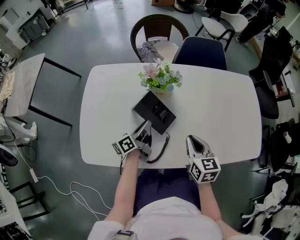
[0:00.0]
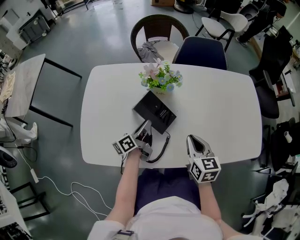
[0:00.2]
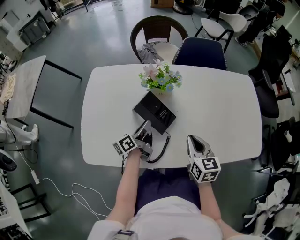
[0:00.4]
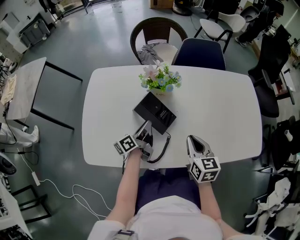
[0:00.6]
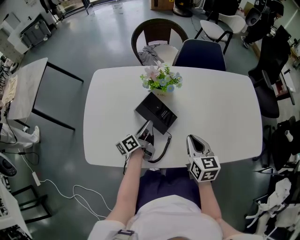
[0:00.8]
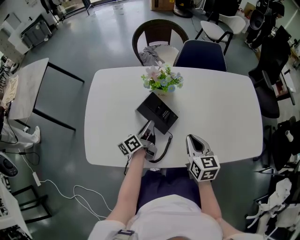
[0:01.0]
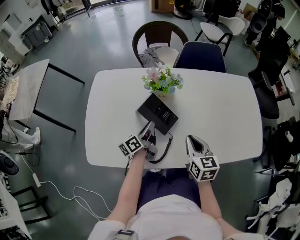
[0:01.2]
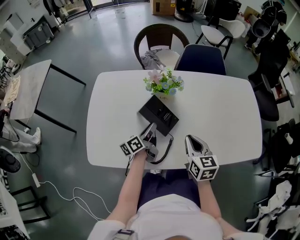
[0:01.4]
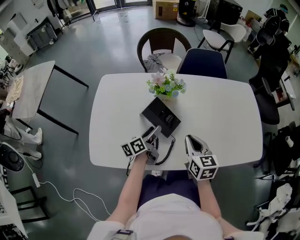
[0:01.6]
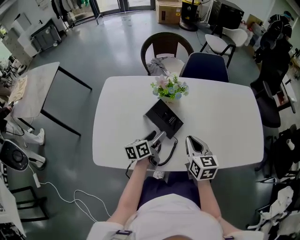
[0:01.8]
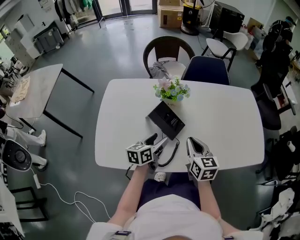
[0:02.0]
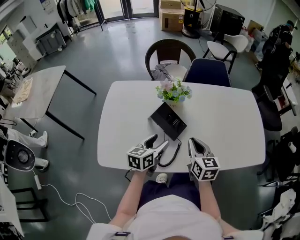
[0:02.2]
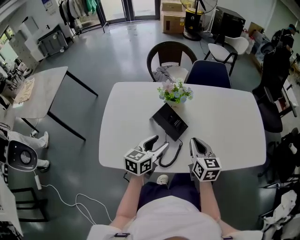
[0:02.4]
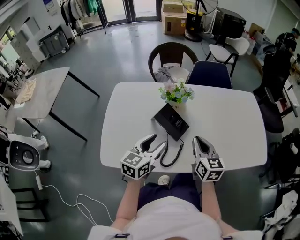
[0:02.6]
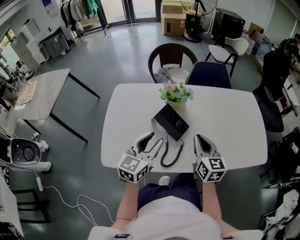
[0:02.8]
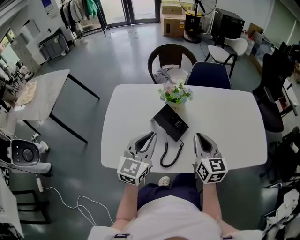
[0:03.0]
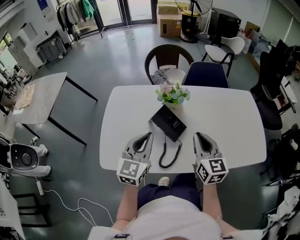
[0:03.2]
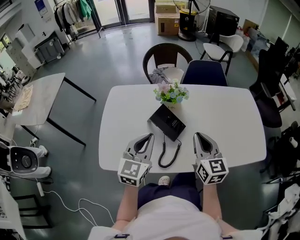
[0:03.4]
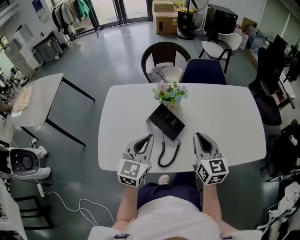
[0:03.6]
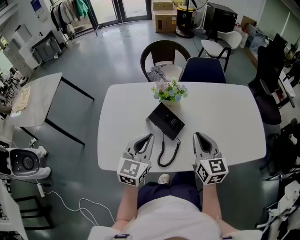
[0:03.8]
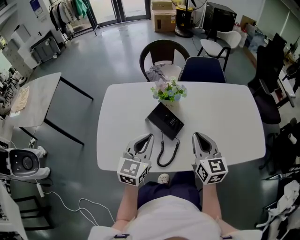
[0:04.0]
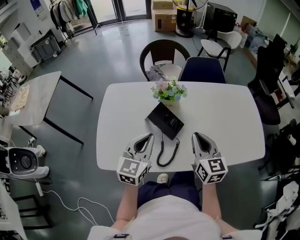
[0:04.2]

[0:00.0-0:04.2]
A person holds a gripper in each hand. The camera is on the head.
0.0 to 1.4 s: The grippers move only a little.
1.4 to 2.8 s: The right gripper shifts some 5 cm upward. Meanwhile the left gripper shifts some 20 cm upward and backward, twists some 60 degrees clockwise, seen from behind, and opens, then closes once more.
2.8 to 4.2 s: The left gripper closes its fingers.

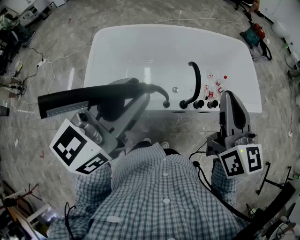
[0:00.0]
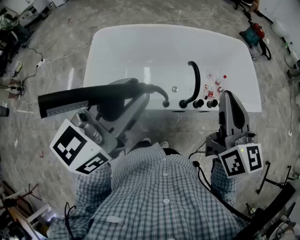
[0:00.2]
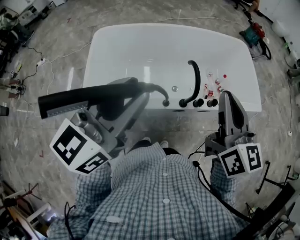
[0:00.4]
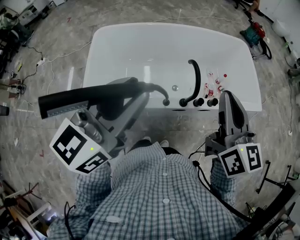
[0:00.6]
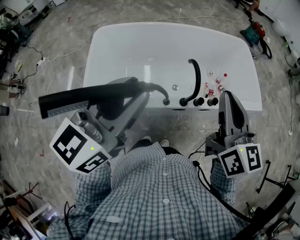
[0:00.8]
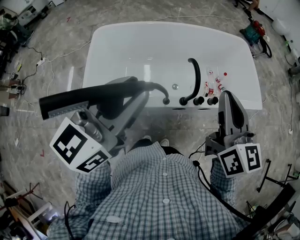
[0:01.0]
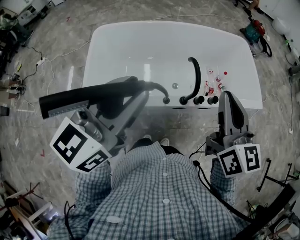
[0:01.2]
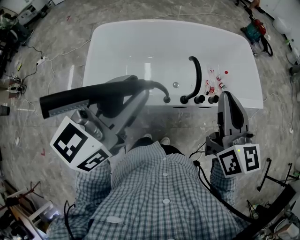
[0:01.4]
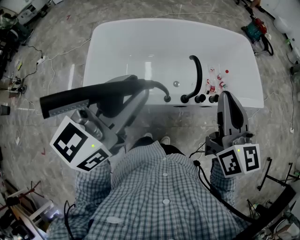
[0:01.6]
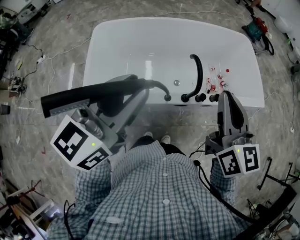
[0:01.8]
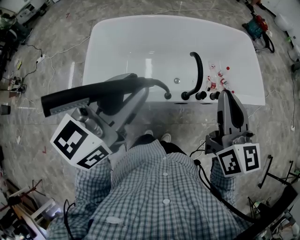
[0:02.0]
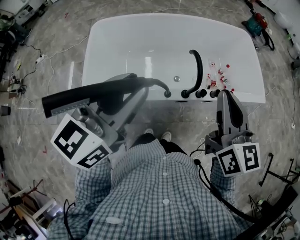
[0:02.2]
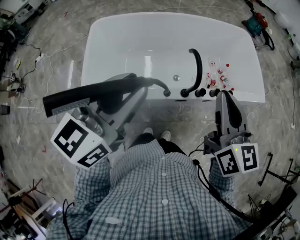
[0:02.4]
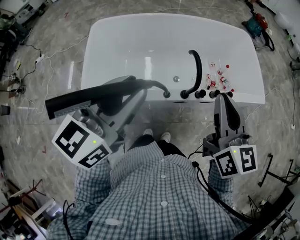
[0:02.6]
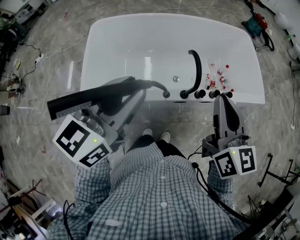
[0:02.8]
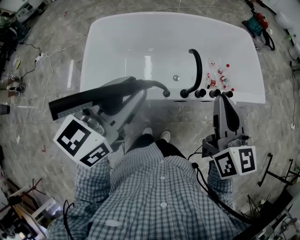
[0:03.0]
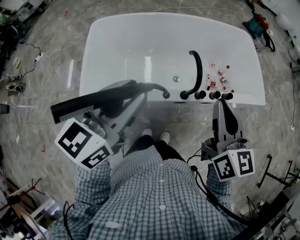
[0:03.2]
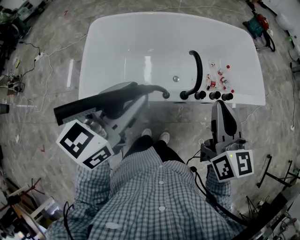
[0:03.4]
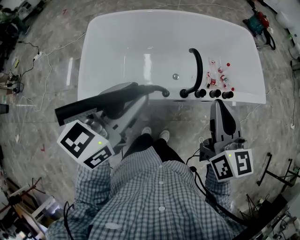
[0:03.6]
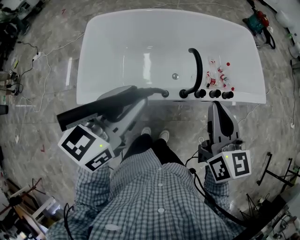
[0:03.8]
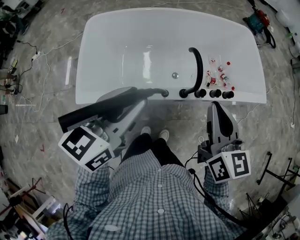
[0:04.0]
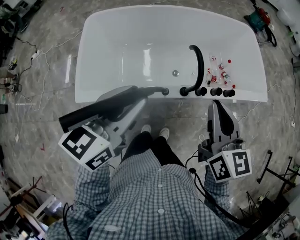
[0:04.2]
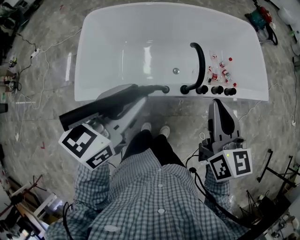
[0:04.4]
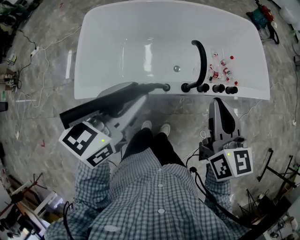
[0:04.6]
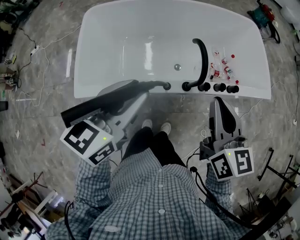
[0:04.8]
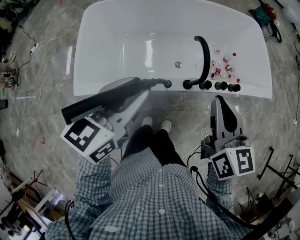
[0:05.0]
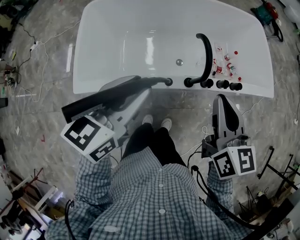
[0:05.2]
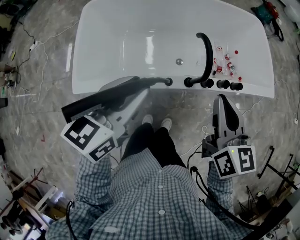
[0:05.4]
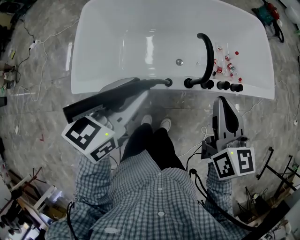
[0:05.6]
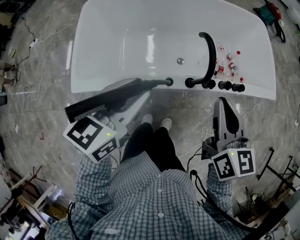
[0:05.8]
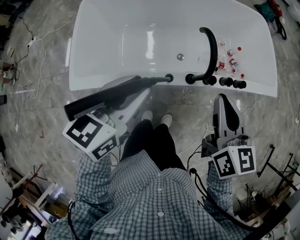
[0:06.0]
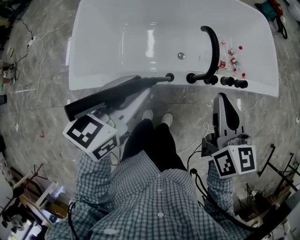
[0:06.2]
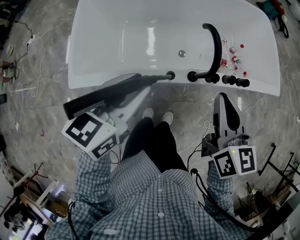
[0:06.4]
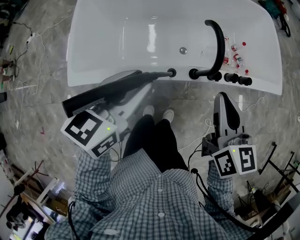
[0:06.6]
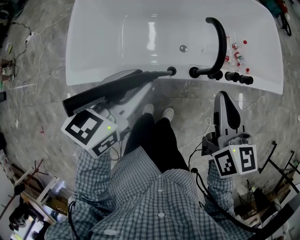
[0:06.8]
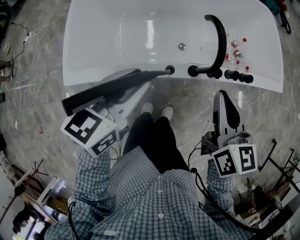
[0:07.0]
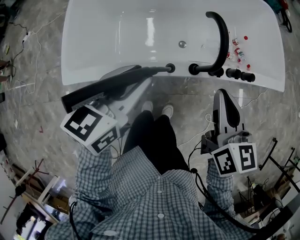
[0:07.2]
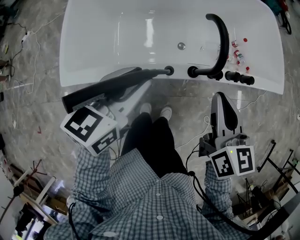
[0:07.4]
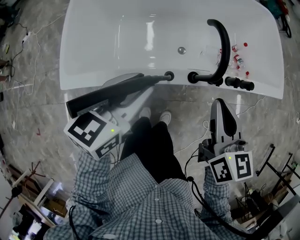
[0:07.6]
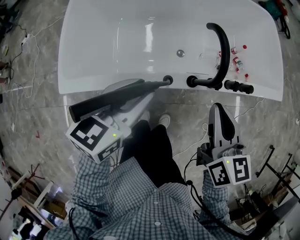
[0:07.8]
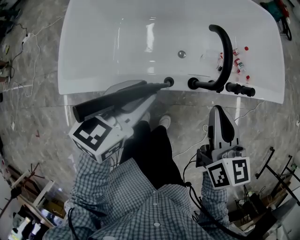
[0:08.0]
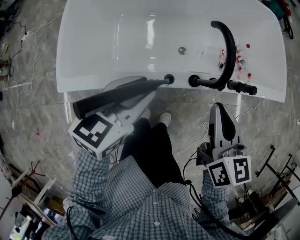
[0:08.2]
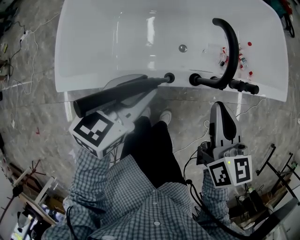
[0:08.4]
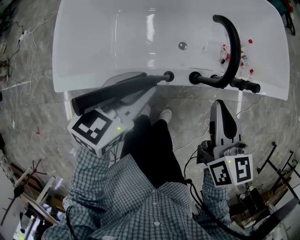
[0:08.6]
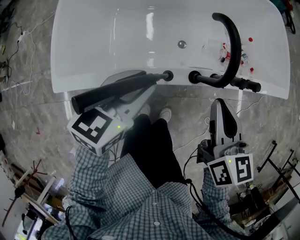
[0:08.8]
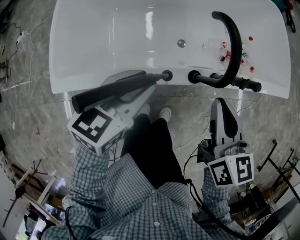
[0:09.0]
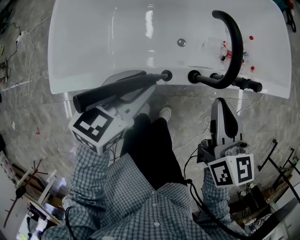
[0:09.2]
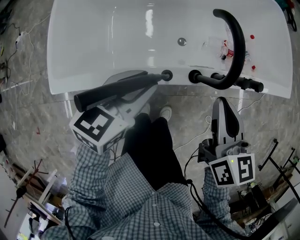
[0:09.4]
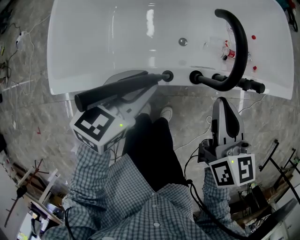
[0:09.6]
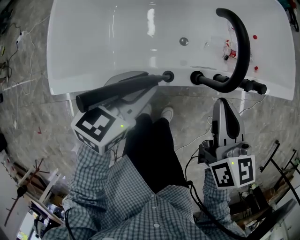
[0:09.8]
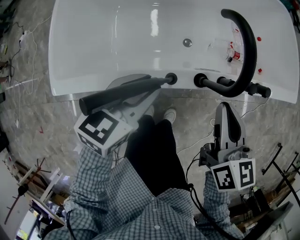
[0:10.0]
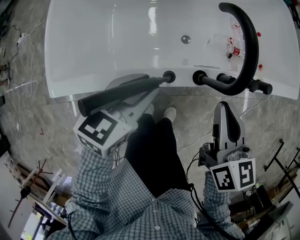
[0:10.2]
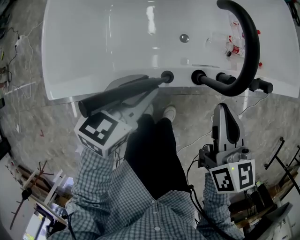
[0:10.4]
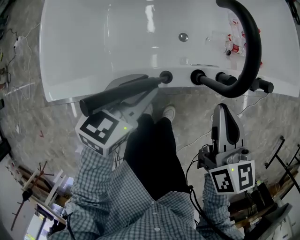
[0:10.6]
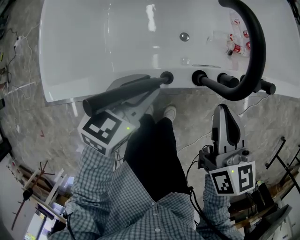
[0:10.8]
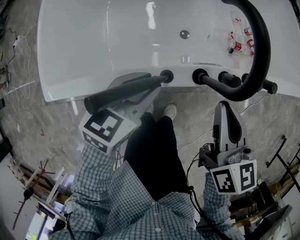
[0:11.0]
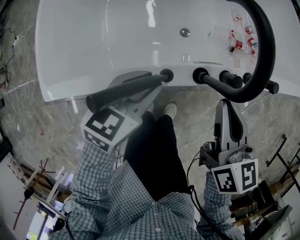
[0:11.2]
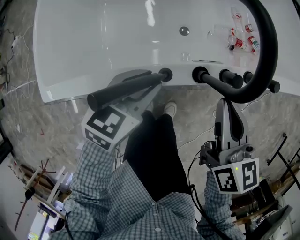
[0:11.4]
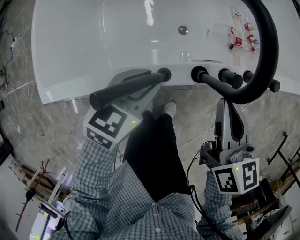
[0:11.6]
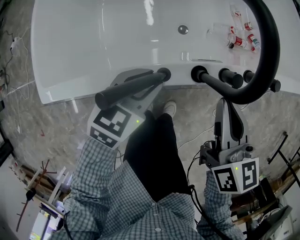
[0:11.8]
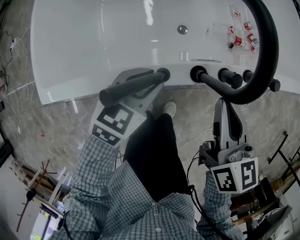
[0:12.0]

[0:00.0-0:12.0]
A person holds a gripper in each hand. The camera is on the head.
0.0 to 3.0 s: There are only small adjustments of the grippers.
3.0 to 4.4 s: The two grippers go approximately 5 cm downward.
4.4 to 6.0 s: The grippers both shift downward by some 10 cm.
6.0 to 7.6 s: The grippers both shift downward by some 10 cm.
7.6 to 9.0 s: The grippers both shift downward by roughly 5 cm.
9.0 to 10.4 s: Both grippers travel together downward, about 5 cm.
10.4 to 12.0 s: The left gripper shifts approximately 10 cm downward.

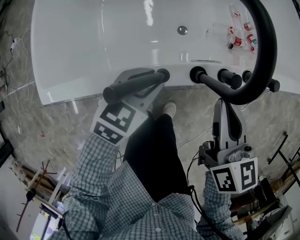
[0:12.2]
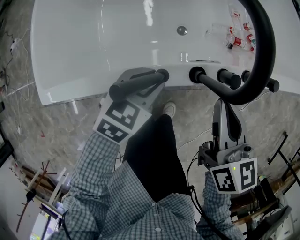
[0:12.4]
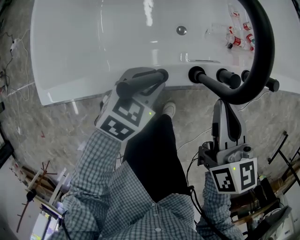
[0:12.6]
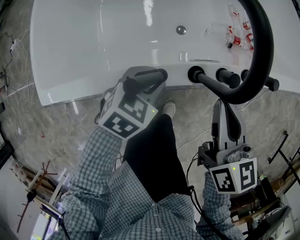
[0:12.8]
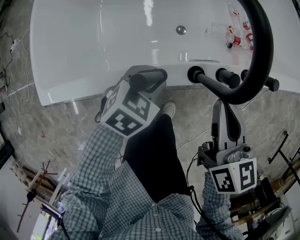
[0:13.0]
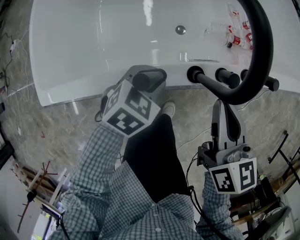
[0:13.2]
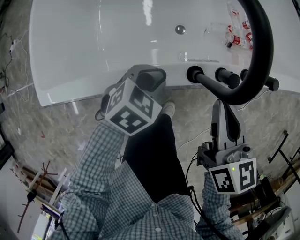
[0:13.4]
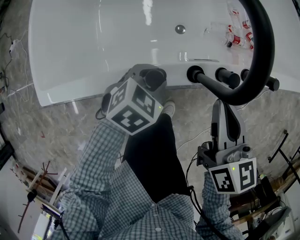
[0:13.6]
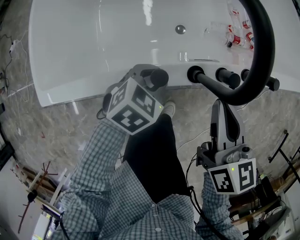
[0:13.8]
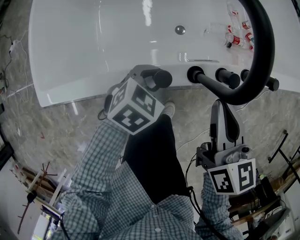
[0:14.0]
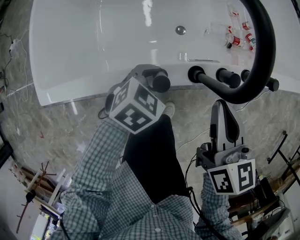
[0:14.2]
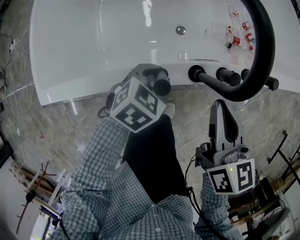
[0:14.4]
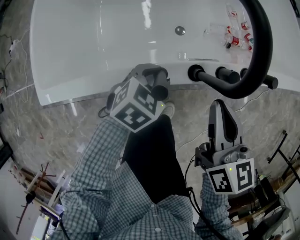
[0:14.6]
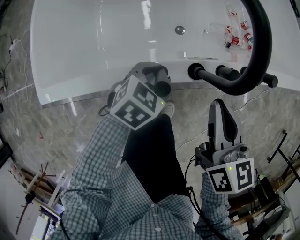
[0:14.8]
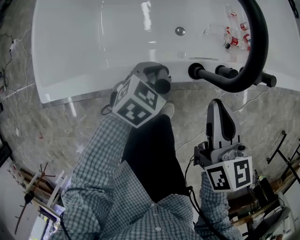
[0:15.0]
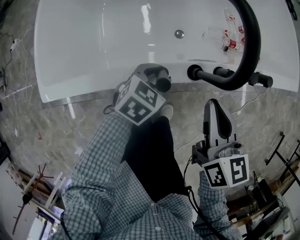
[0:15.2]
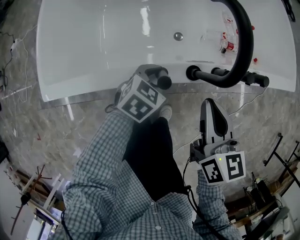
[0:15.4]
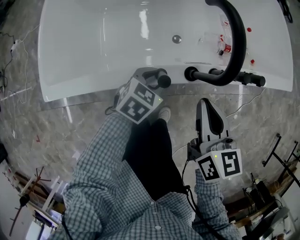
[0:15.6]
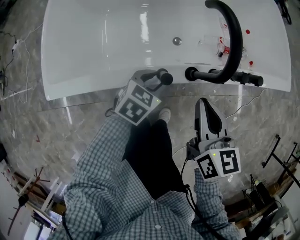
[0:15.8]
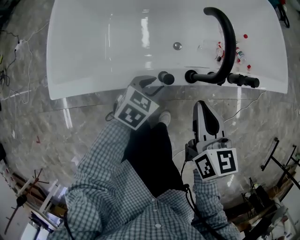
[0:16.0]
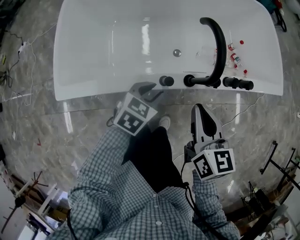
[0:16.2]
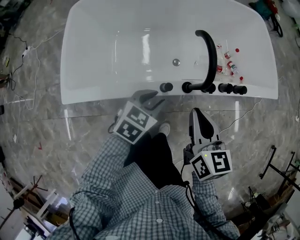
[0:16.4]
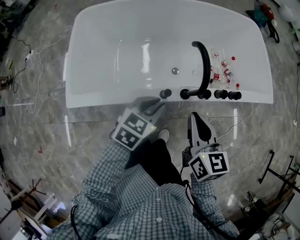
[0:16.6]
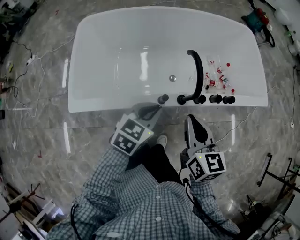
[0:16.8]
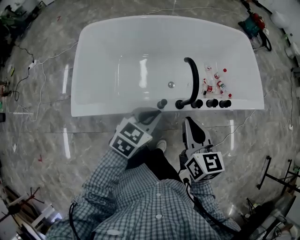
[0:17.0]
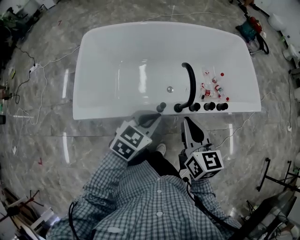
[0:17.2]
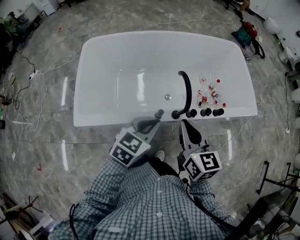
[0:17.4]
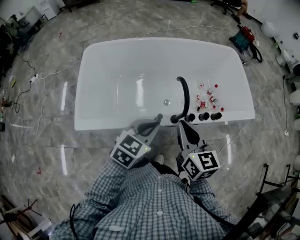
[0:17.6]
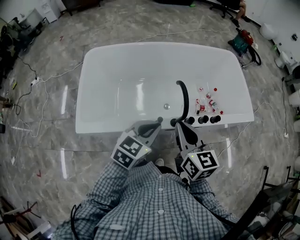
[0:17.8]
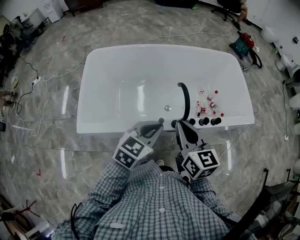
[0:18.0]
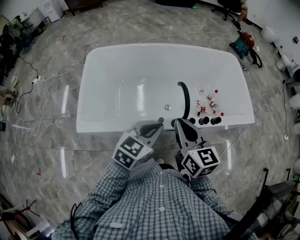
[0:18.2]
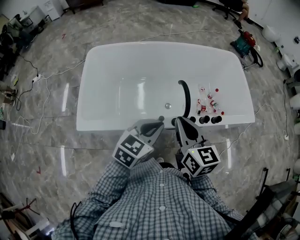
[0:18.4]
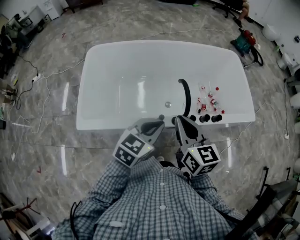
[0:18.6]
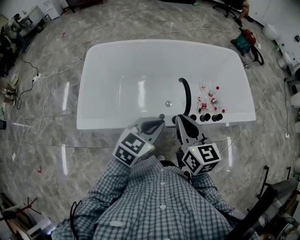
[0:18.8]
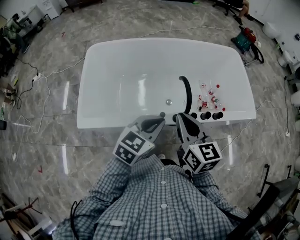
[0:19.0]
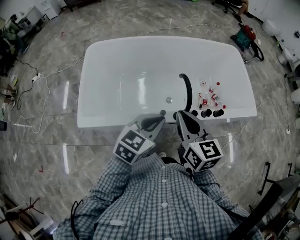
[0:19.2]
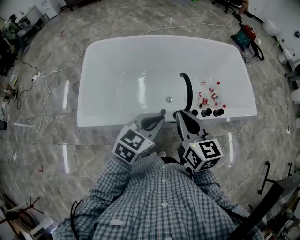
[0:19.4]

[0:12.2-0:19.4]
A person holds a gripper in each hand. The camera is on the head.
12.2 to 15.0 s: The grippers stay close to where they were, moving slightly.
15.0 to 16.6 s: The right gripper heads upward and backward, covering approximately 15 cm; the left gripper goes roughly 20 cm upward.
16.6 to 18.0 s: The two grippers go approximately 15 cm upward.
18.0 to 19.4 s: The two grippers keep their place.

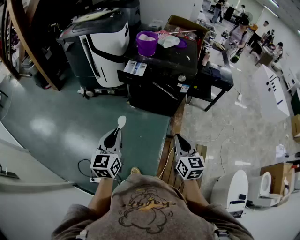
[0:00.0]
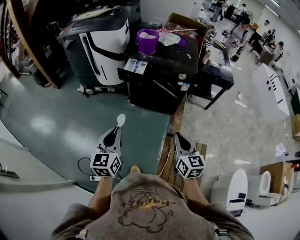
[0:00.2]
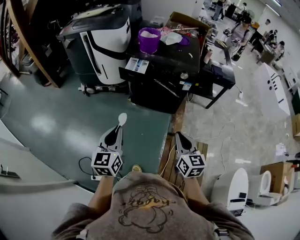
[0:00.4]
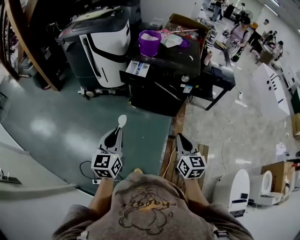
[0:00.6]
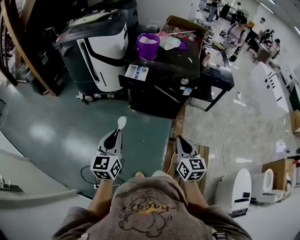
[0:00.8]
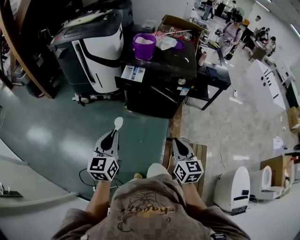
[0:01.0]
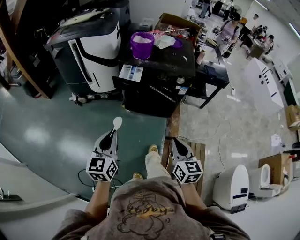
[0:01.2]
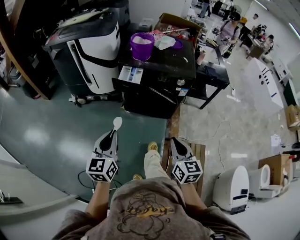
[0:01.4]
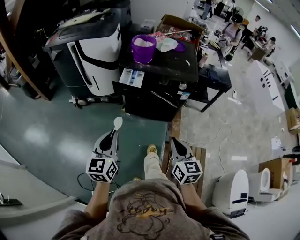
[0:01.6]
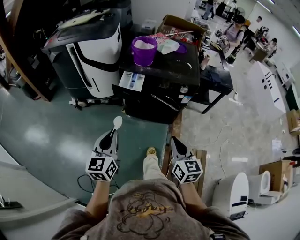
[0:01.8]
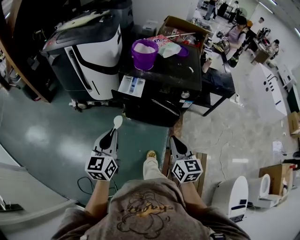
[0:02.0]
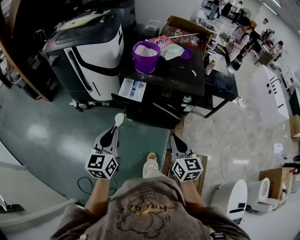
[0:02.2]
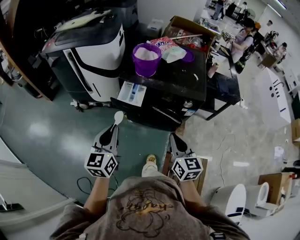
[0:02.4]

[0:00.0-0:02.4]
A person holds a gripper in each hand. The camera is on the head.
0.0 to 1.2 s: The right gripper goes roughly 5 cm to the left; the left gripper moves forward, roughly 10 cm.
1.2 to 2.4 s: Both grippers move forward, about 20 cm.
